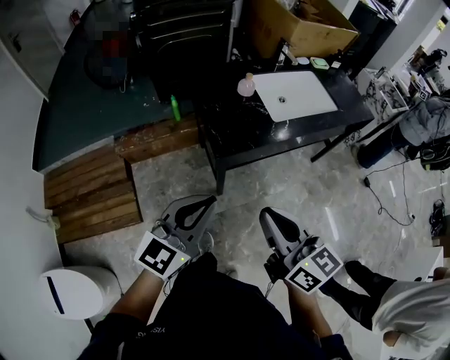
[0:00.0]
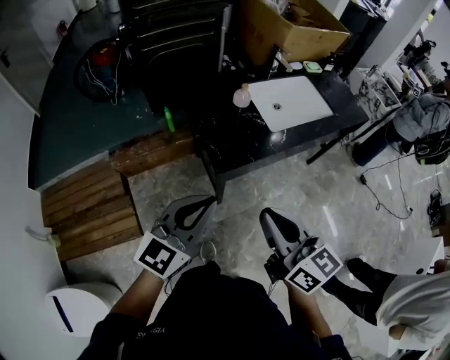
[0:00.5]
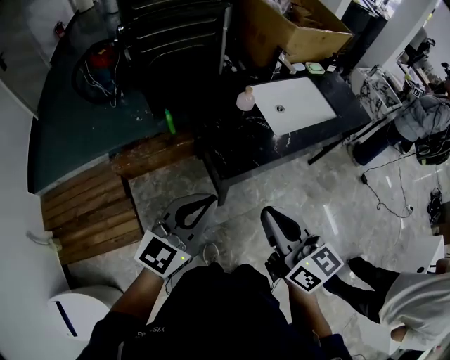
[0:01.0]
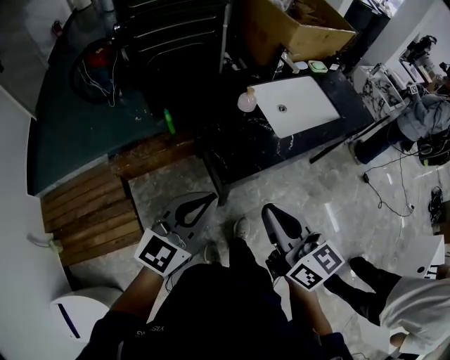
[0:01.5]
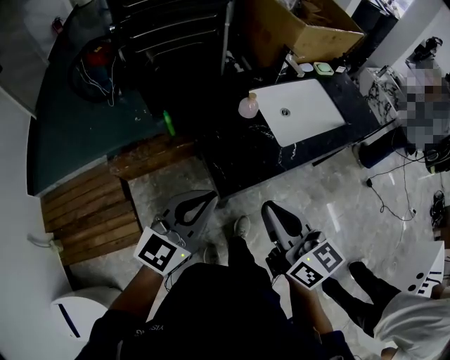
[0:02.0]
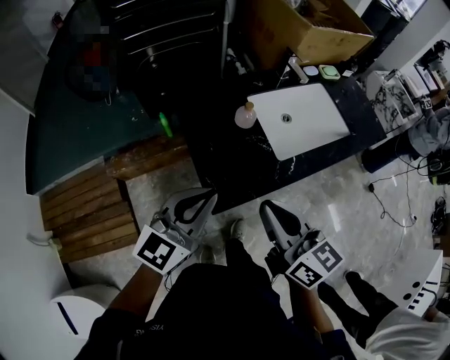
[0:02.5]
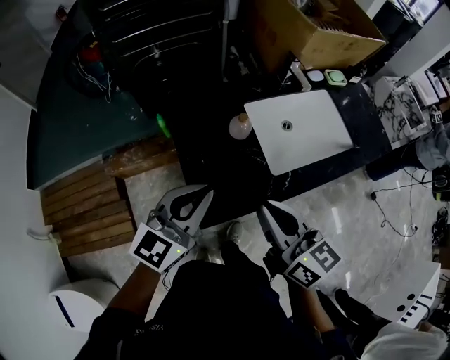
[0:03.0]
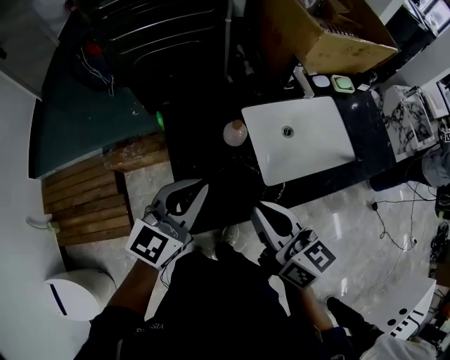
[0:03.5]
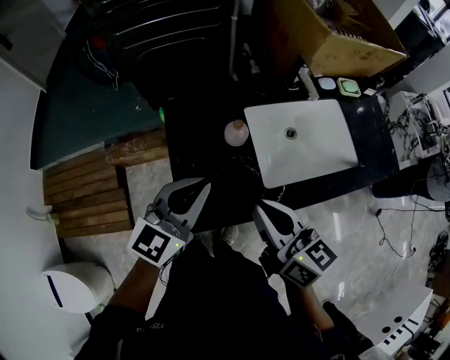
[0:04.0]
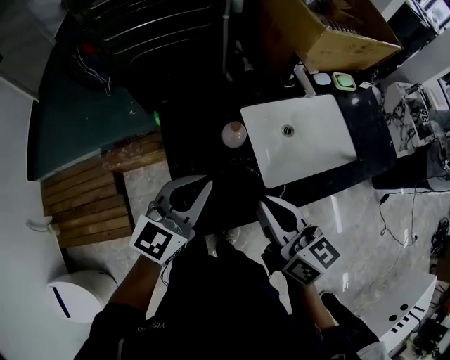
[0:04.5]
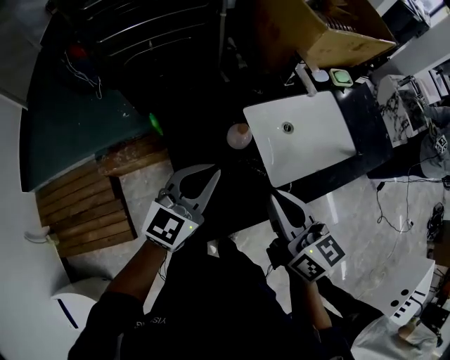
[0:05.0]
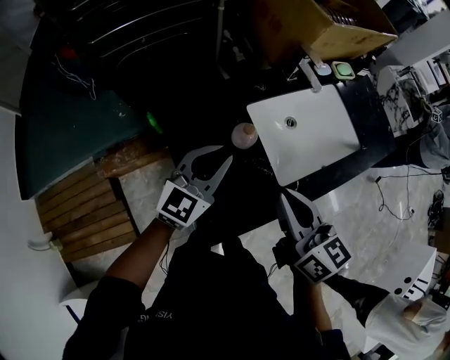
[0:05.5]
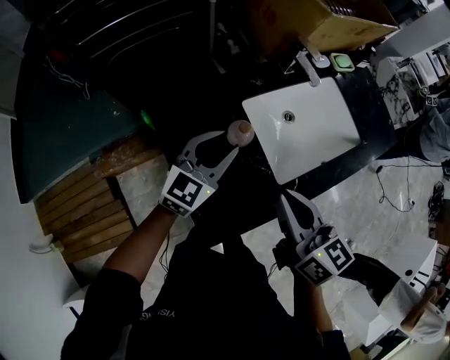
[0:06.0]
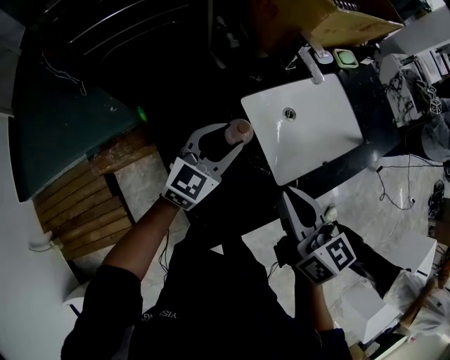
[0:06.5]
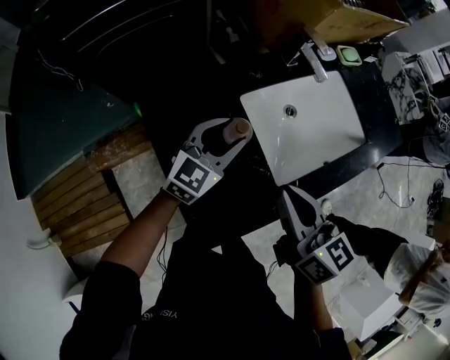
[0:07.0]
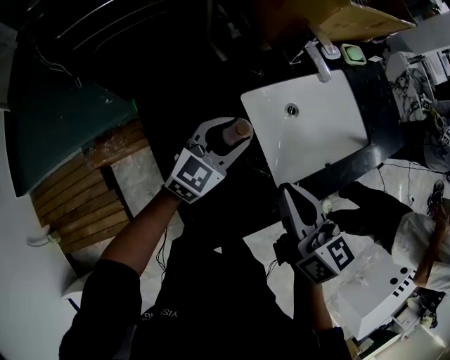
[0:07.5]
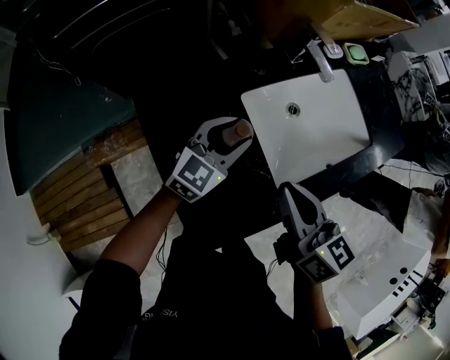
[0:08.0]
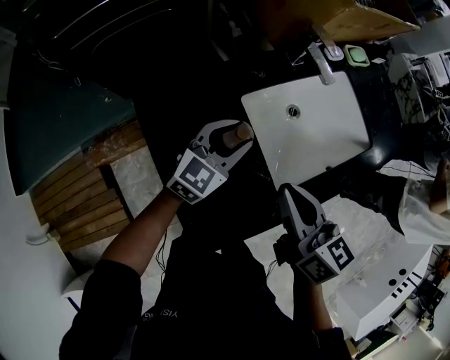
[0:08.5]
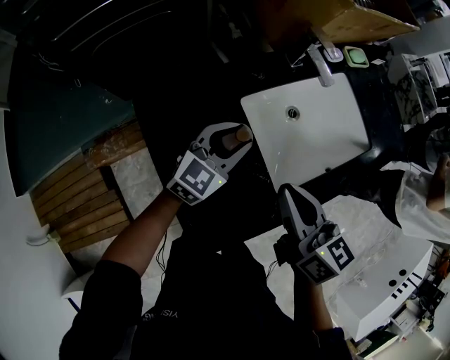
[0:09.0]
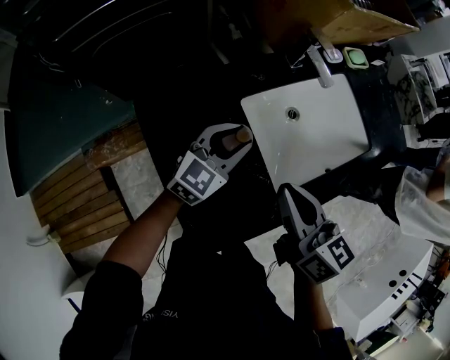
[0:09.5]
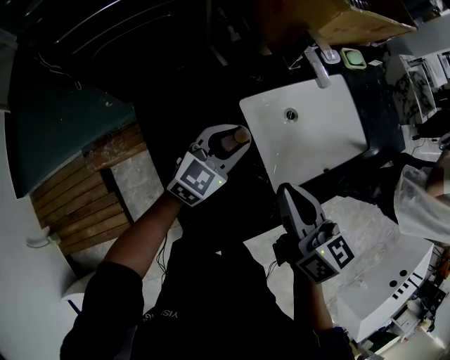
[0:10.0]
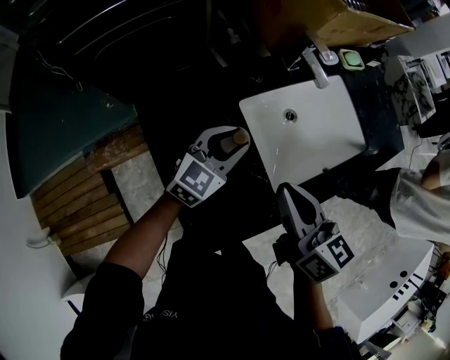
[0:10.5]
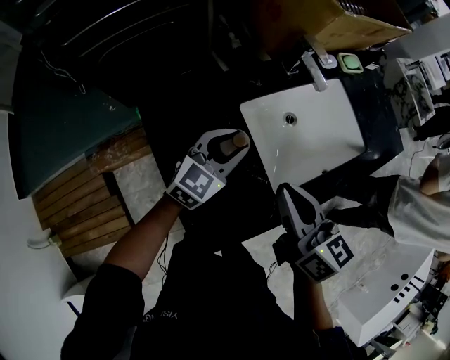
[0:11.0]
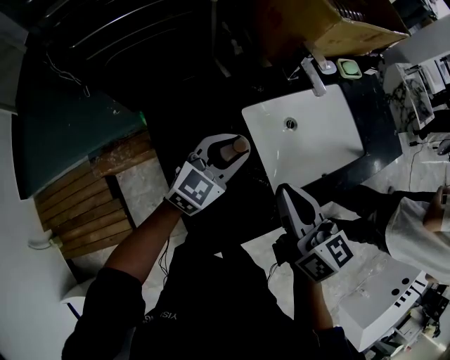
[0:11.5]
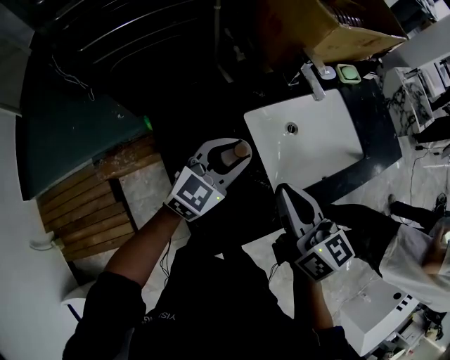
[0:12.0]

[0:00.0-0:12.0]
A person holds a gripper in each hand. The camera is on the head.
0:00.0 to 0:02.0: Both grippers move forward, roughly 15 cm.
0:02.0 to 0:04.0: The grippers both shift forward and to the right by approximately 20 cm.
0:04.0 to 0:06.0: The left gripper travels forward and downward by about 15 cm, and opens up. Meanwhile the right gripper travels forward by about 5 cm, and swivels roughly 20 degrees.
0:06.0 to 0:08.0: The right gripper moves forward, some 5 cm; the left gripper moves downward and forward, roughly 10 cm.
0:08.0 to 0:10.0: Both grippers stay put.
0:10.0 to 0:12.0: The left gripper travels upward by some 5 cm.

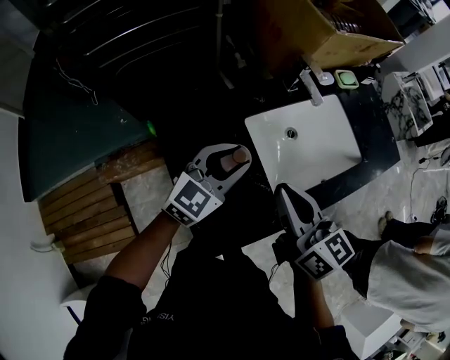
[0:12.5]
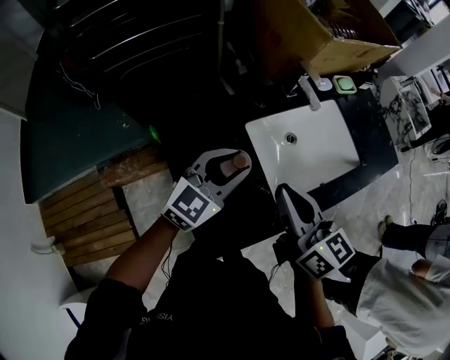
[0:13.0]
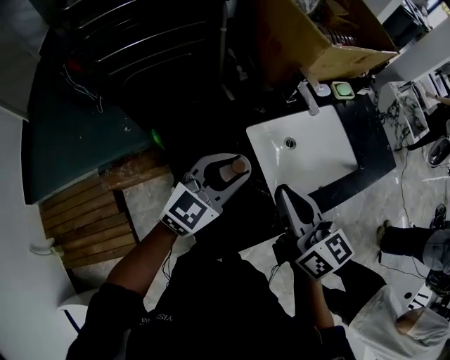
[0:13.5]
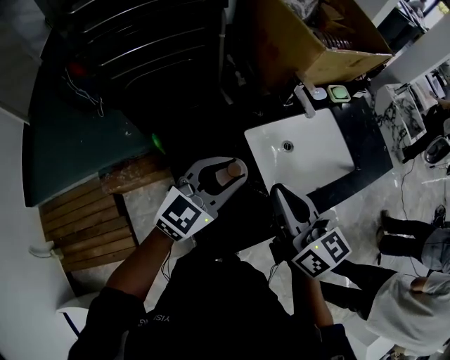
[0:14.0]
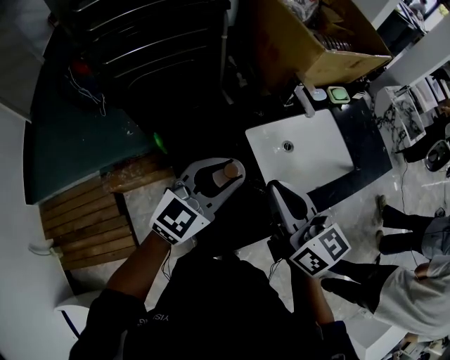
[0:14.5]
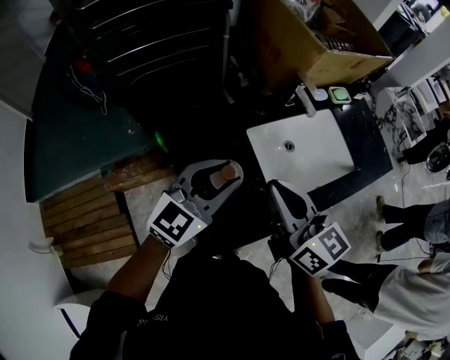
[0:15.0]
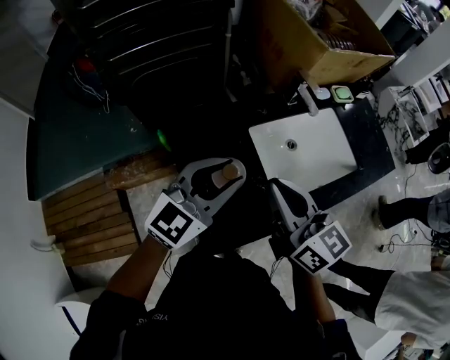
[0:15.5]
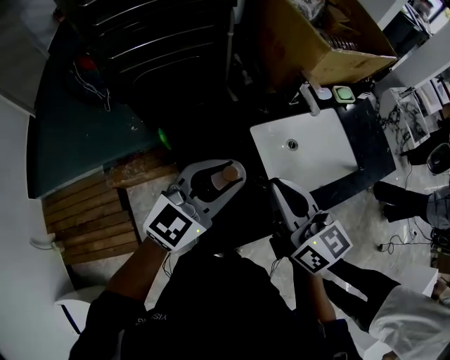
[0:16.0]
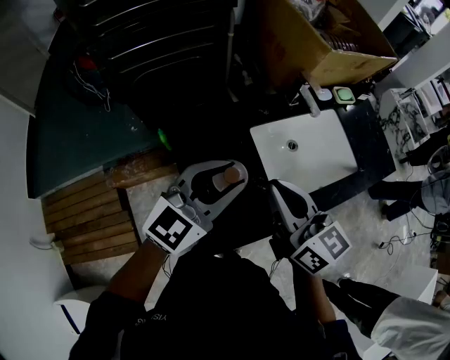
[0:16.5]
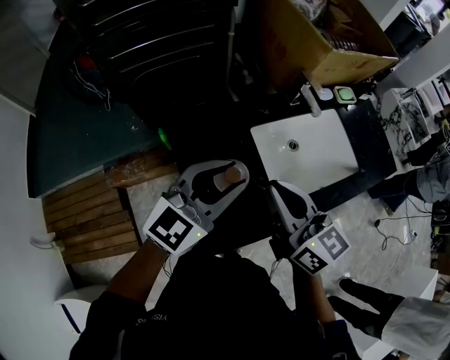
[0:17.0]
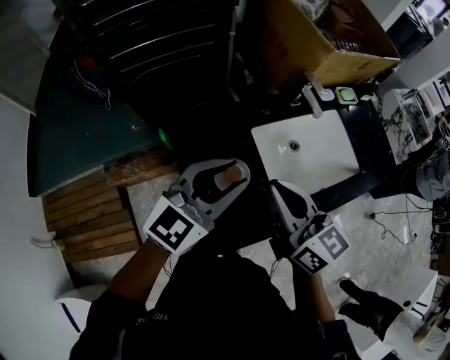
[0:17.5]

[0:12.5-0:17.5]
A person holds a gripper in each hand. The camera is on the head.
0:12.5 to 0:15.0: The left gripper shifts approximately 10 cm upward and backward, while the right gripper heads upward, covering some 5 cm.
0:15.0 to 0:17.5: The grippers move only a little.

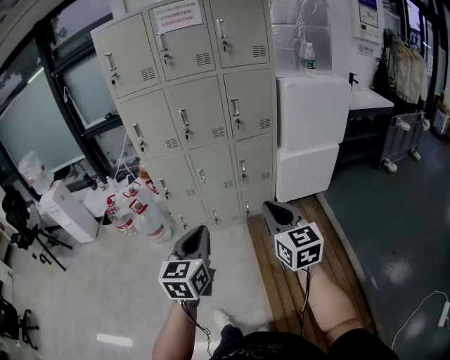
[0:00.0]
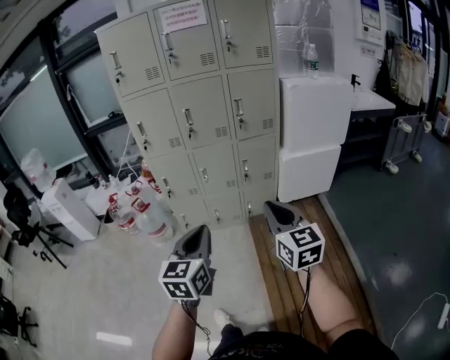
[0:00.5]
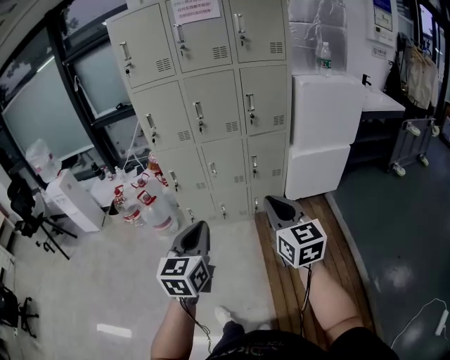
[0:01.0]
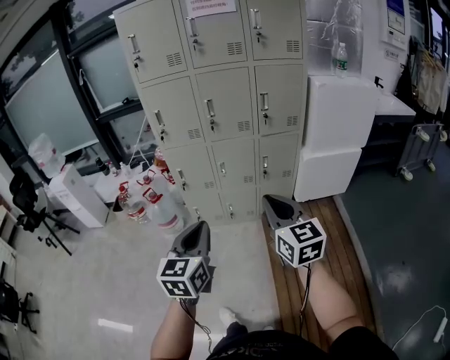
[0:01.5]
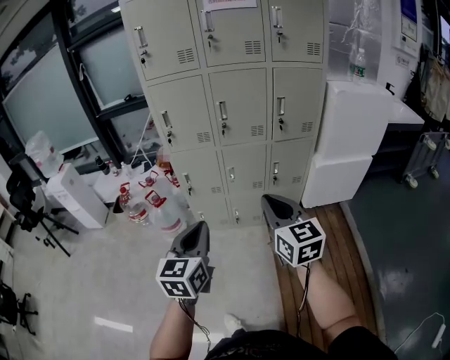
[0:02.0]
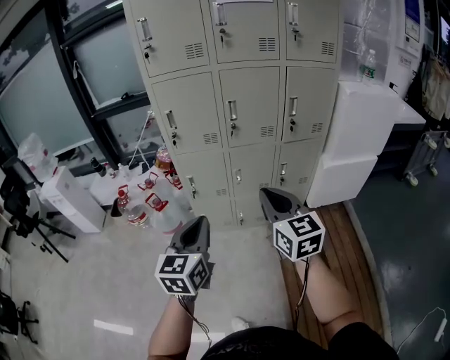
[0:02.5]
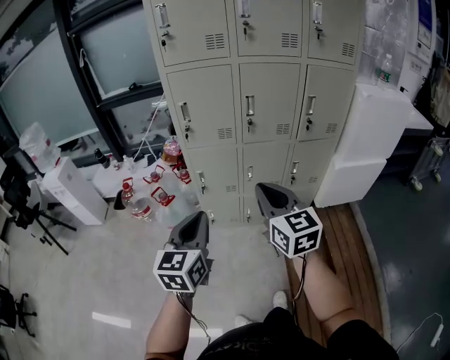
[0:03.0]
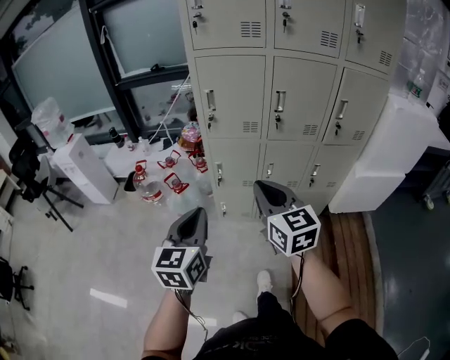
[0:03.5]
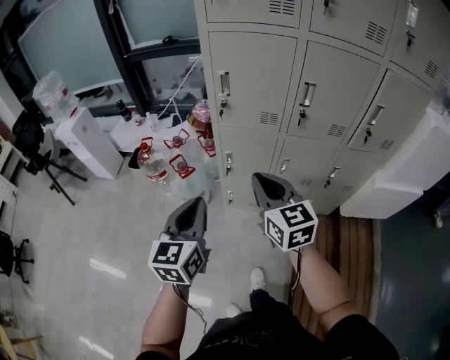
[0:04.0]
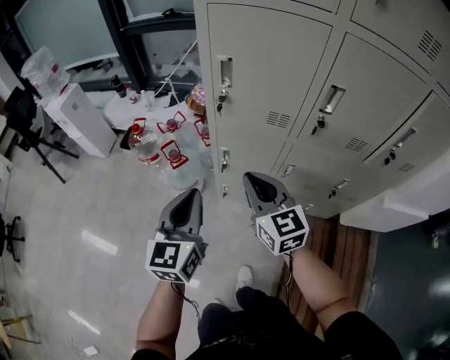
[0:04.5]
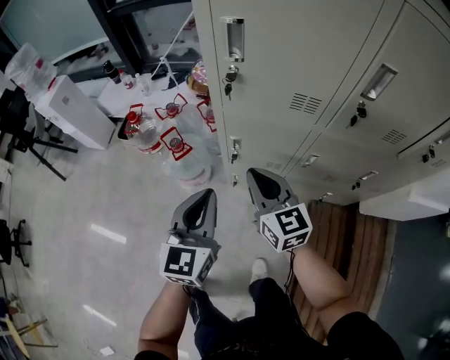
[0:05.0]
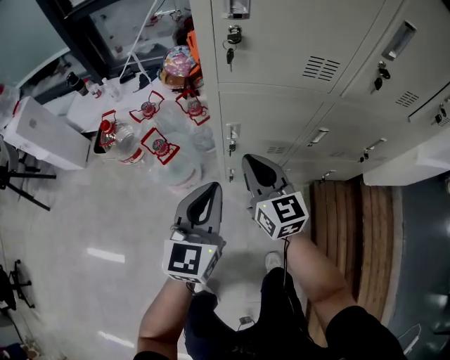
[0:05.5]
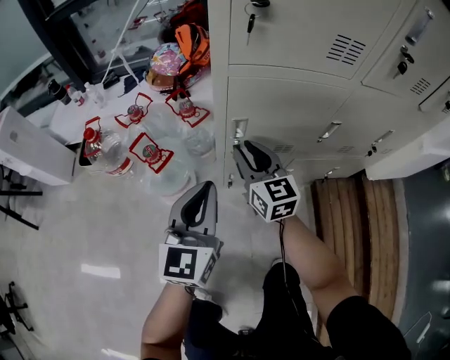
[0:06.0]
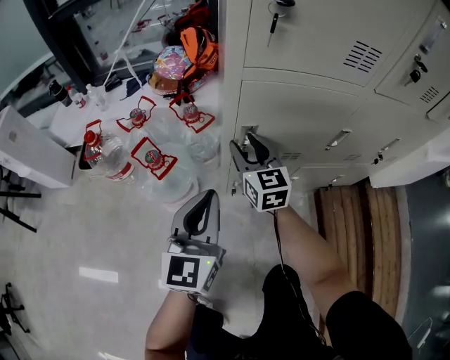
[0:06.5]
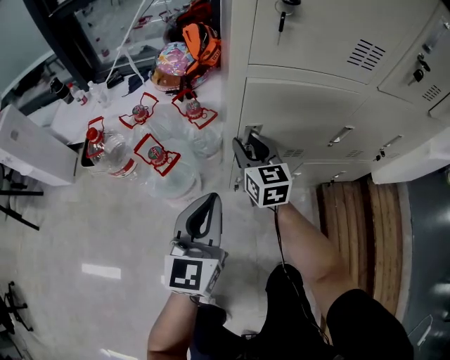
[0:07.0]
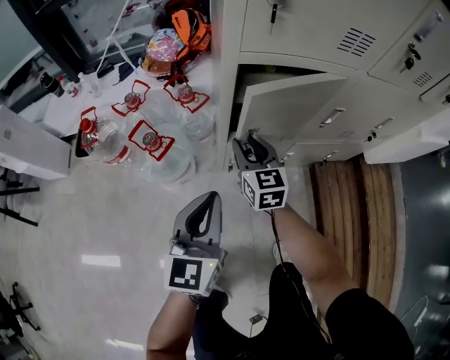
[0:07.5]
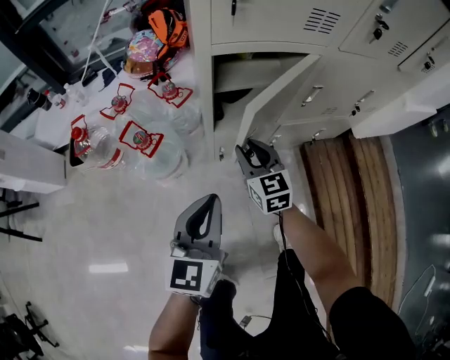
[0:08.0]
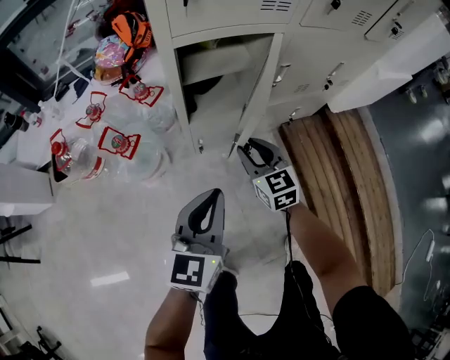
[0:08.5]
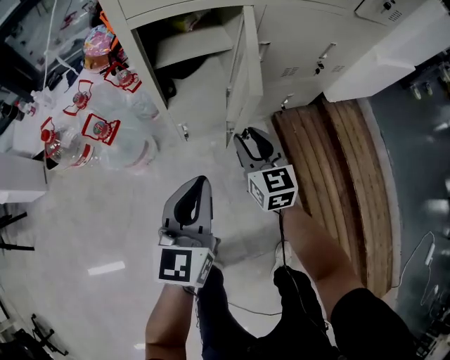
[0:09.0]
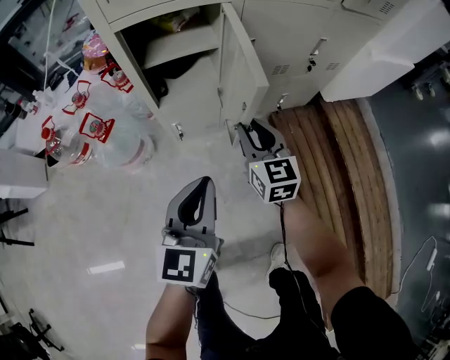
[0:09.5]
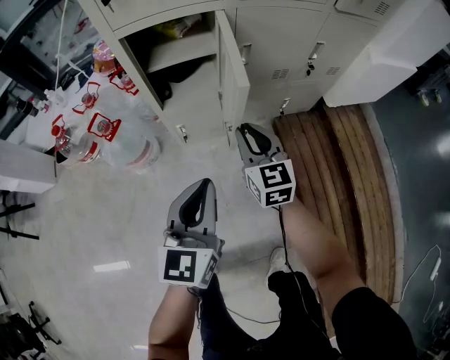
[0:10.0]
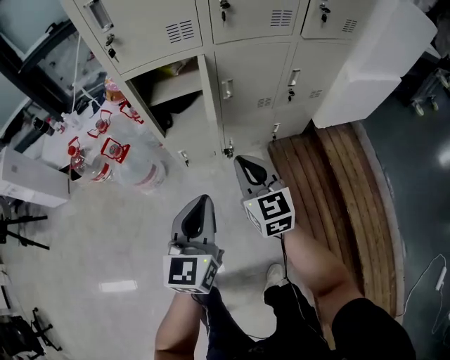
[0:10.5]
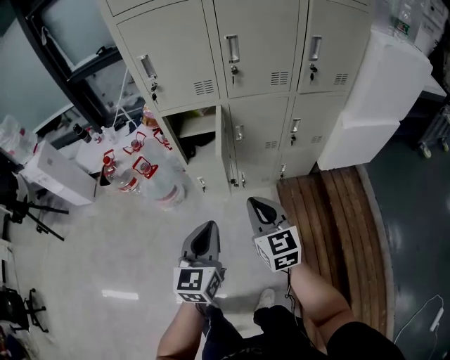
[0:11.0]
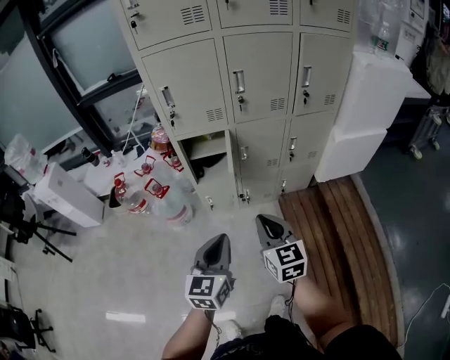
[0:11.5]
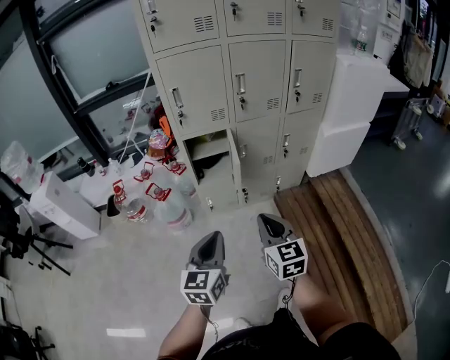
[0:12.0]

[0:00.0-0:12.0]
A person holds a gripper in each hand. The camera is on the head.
0:00.0 to 0:02.0: Both grippers move to the left and forward, roughly 20 cm.
0:02.0 to 0:04.0: The two grippers go some 30 cm forward and to the left.
0:04.0 to 0:06.0: The two grippers go roughly 40 cm downward and forward. The right gripper opens.
0:06.0 to 0:08.0: The grippers both shift backward by roughly 5 cm.
0:08.0 to 0:10.0: The two grippers go about 20 cm to the right and backward.
0:10.0 to 0:12.0: The right gripper shifts roughly 40 cm backward and upward. The left gripper travels upward and backward by about 35 cm.
